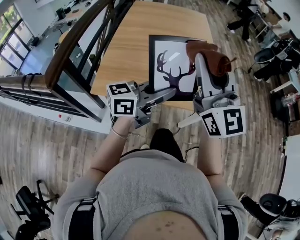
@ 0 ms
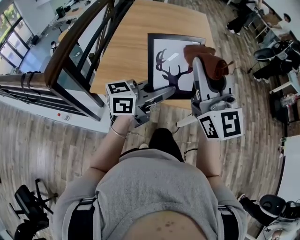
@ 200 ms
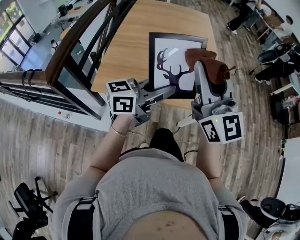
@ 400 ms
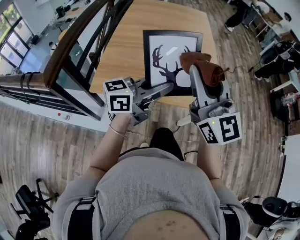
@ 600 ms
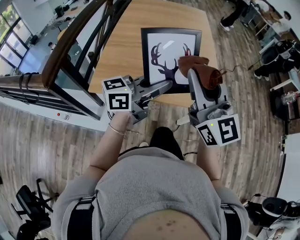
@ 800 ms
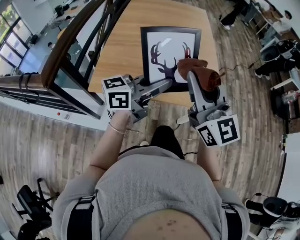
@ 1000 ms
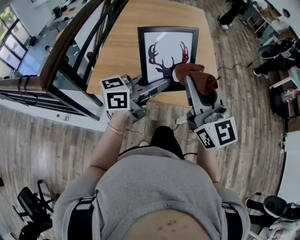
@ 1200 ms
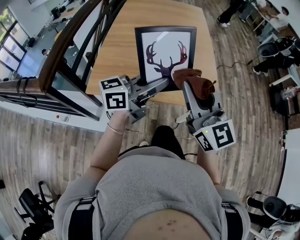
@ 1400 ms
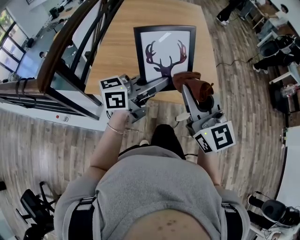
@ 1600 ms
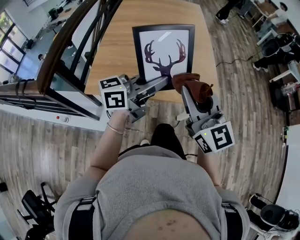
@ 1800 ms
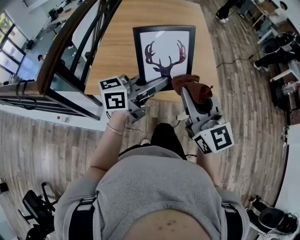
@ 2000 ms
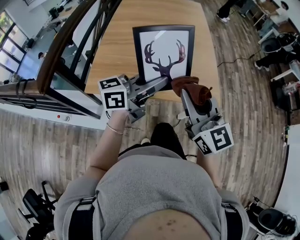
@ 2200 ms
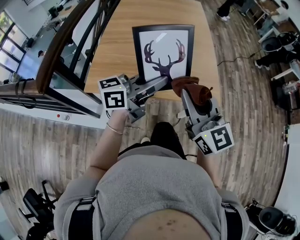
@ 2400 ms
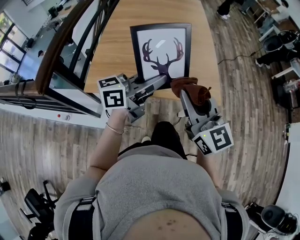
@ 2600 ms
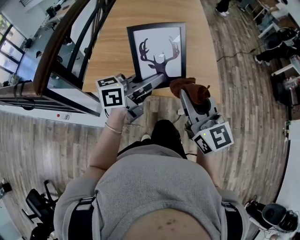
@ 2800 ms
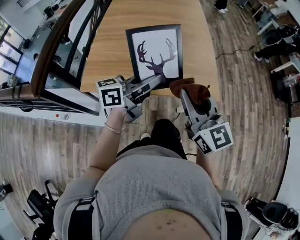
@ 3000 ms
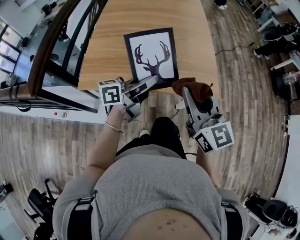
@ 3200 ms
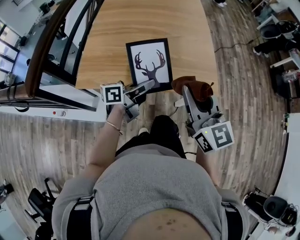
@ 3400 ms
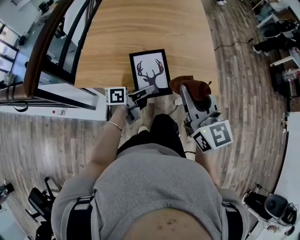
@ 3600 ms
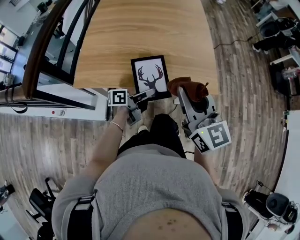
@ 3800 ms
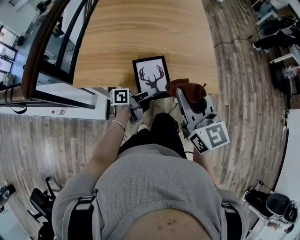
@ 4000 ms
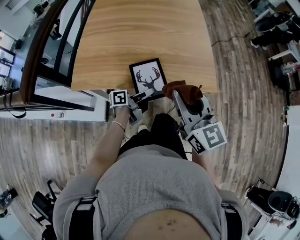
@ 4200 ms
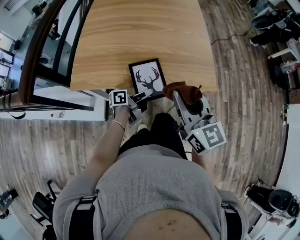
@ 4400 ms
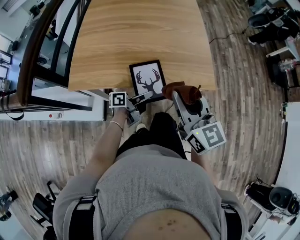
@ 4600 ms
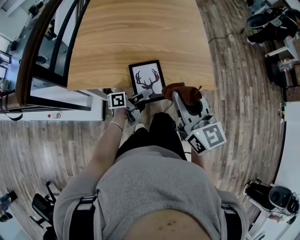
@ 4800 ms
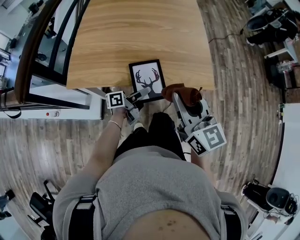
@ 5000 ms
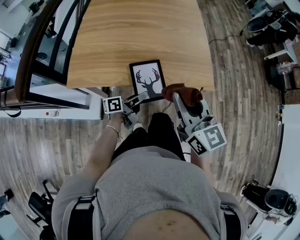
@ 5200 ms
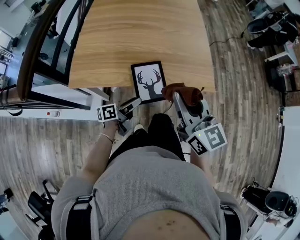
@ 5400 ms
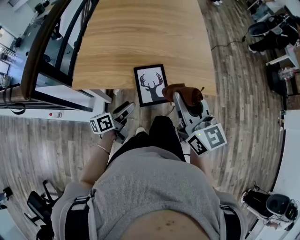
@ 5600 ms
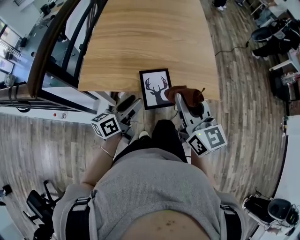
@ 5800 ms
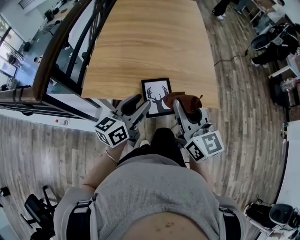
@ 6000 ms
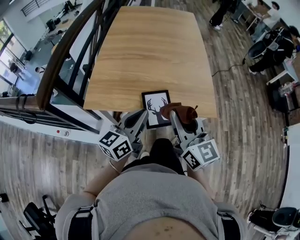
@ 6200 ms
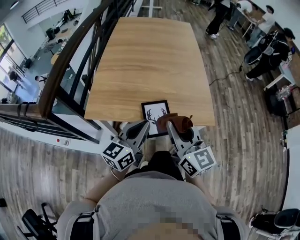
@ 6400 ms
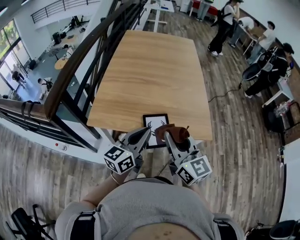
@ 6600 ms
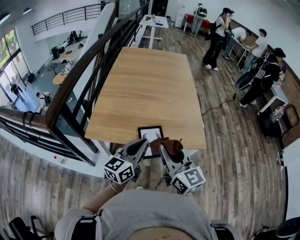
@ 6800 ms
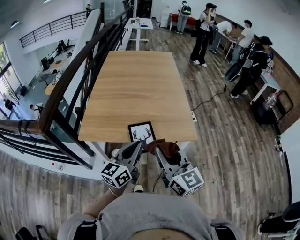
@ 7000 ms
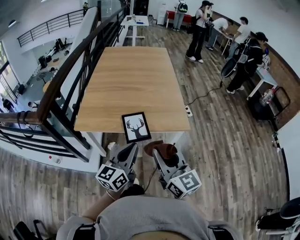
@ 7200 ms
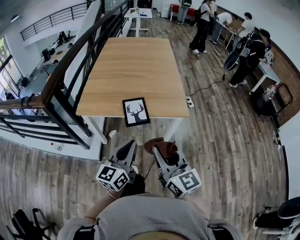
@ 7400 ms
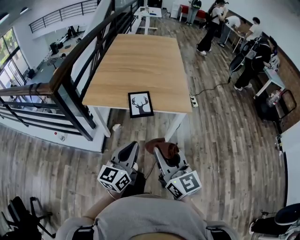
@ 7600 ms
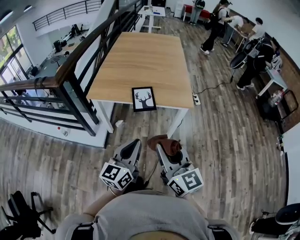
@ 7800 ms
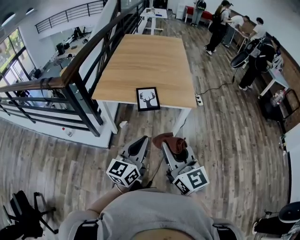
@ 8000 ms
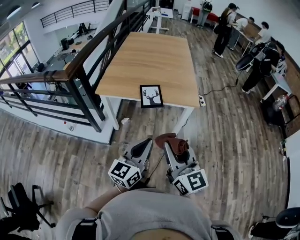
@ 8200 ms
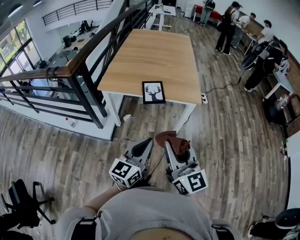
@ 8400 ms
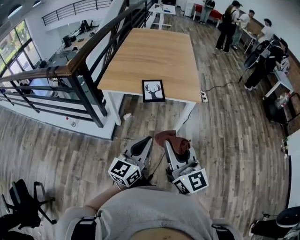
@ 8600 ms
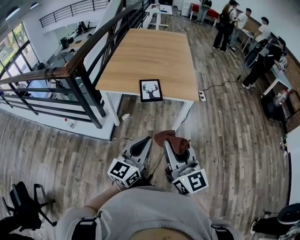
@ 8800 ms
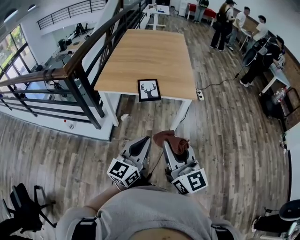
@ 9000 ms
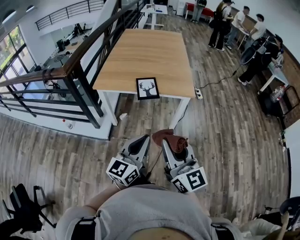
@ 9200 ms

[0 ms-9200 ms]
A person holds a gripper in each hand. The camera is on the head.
0 ms to 1600 ms: The right gripper travels downward by some 10 cm.
1600 ms to 3000 ms: The left gripper moves roughly 5 cm.
3000 ms to 4600 ms: The right gripper moves downward, approximately 5 cm. Meanwhile the left gripper goes about 25 cm downward, and rotates approximately 30 degrees.
4600 ms to 6200 ms: The right gripper changes place by approximately 5 cm. Meanwhile the left gripper travels upward by roughly 20 cm, twists approximately 50 degrees clockwise, seen from behind, and opens, then closes once more.
6200 ms to 7600 ms: The grippers both shift backward by approximately 30 cm.
7600 ms to 9200 ms: Both grippers travel together backward, roughly 10 cm.

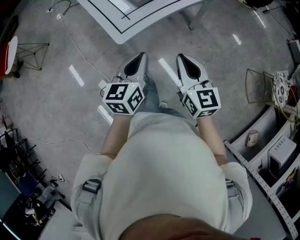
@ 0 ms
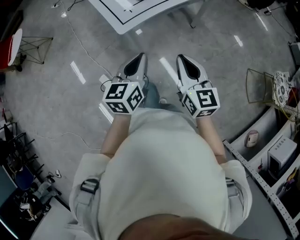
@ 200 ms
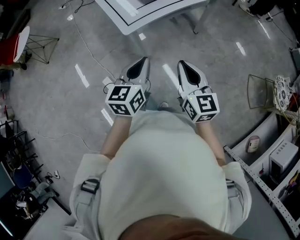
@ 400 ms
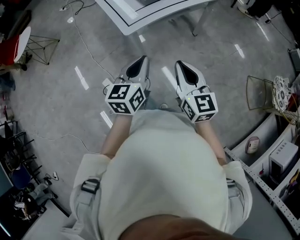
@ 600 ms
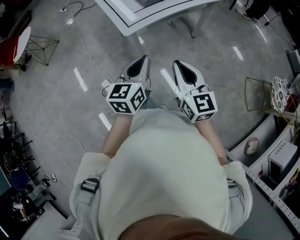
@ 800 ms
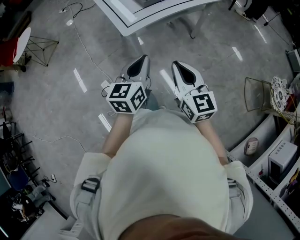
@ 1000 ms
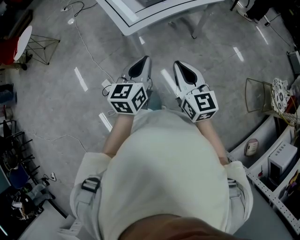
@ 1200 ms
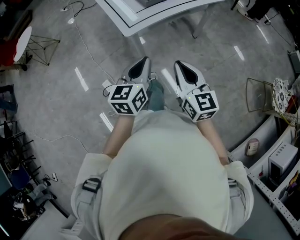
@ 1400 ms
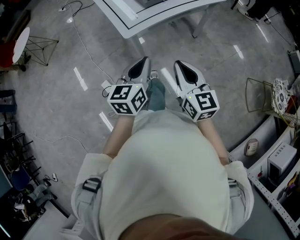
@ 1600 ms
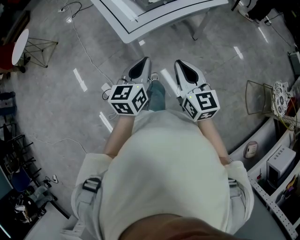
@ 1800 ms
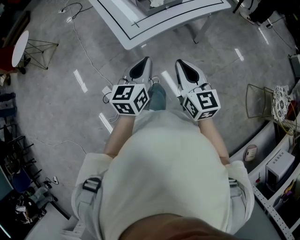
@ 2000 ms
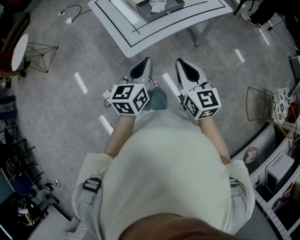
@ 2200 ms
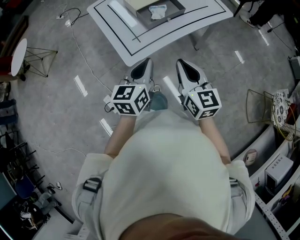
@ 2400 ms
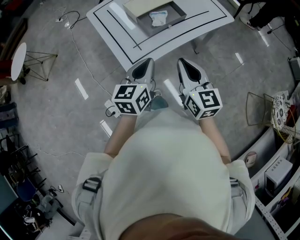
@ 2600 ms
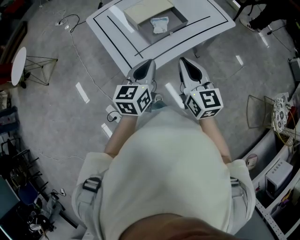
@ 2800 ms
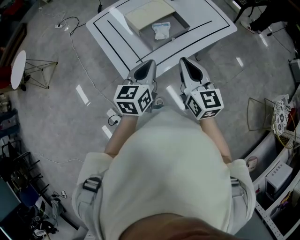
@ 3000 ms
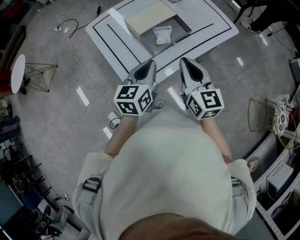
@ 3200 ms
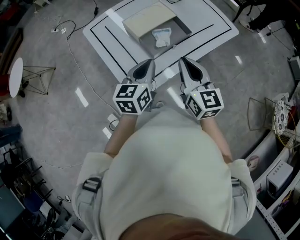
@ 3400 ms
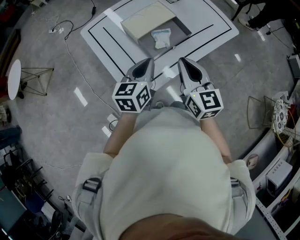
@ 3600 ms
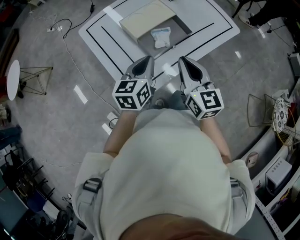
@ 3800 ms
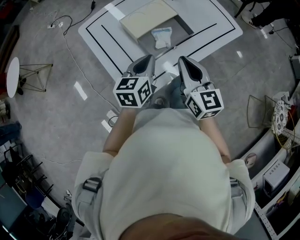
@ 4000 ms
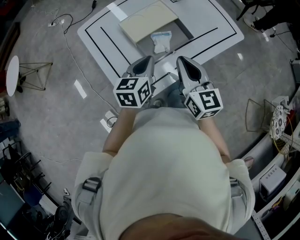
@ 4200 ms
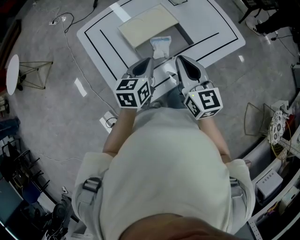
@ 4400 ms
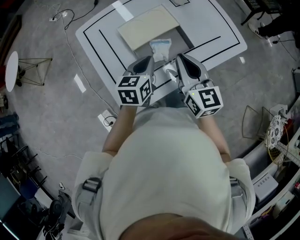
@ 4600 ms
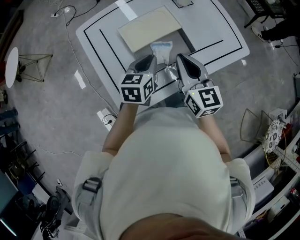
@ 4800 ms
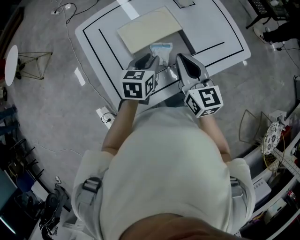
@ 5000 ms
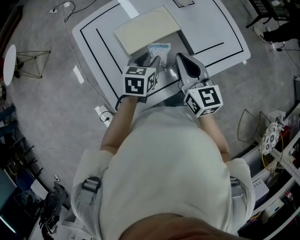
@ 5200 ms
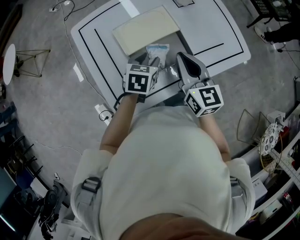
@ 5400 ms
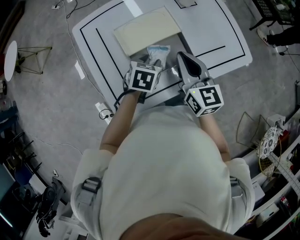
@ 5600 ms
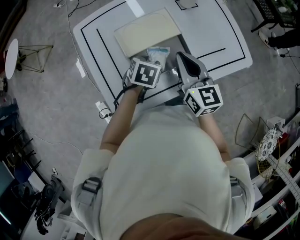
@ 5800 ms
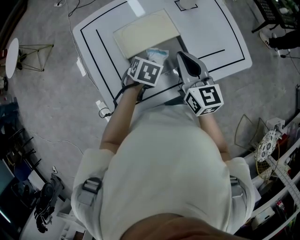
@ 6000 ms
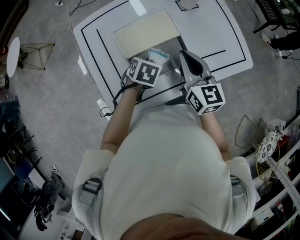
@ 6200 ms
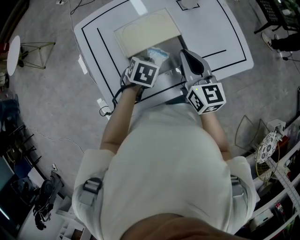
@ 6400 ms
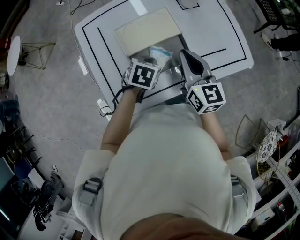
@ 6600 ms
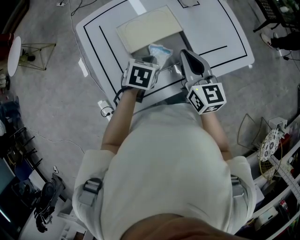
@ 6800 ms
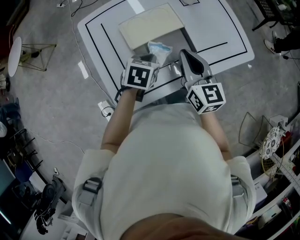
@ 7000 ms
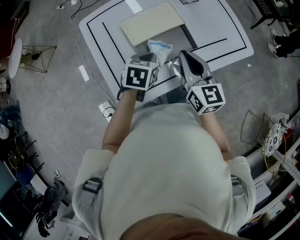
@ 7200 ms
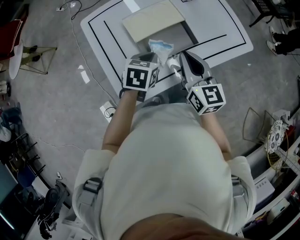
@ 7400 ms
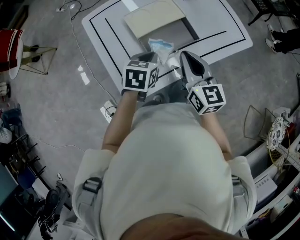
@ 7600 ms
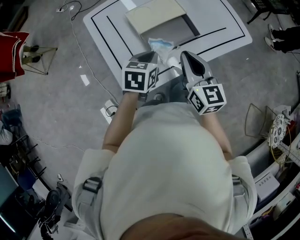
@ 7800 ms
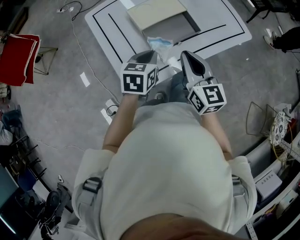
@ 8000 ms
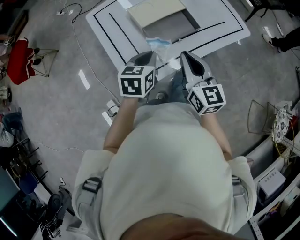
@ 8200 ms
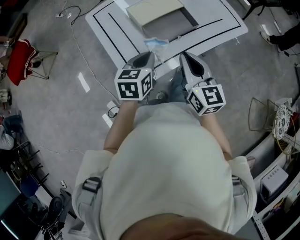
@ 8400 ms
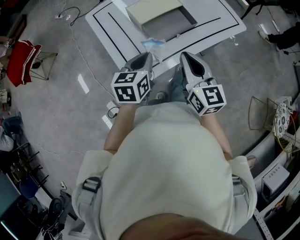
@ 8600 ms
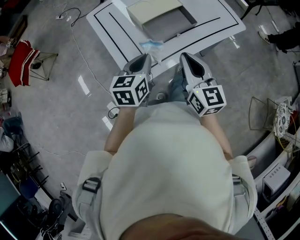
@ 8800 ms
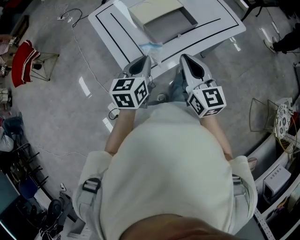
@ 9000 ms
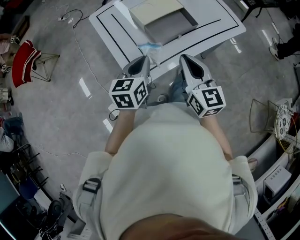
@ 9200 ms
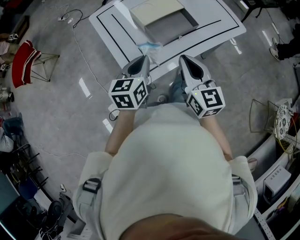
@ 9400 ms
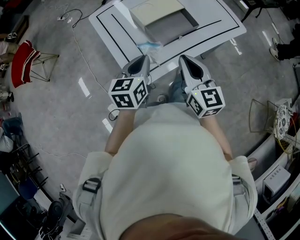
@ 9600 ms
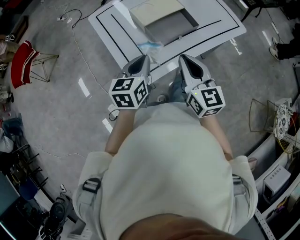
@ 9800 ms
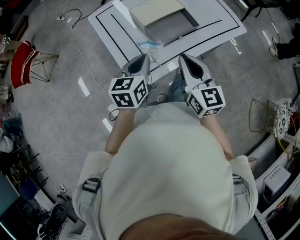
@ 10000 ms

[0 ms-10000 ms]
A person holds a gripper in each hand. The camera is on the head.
0 ms to 1400 ms: The two grippers go about 10 cm backward.
1400 ms to 2800 ms: Both grippers travel together forward, roughly 30 cm.
2800 ms to 4200 ms: Both grippers travel together forward, about 15 cm.
4200 ms to 5800 ms: The right gripper heads forward, covering some 15 cm. The left gripper goes some 15 cm downward and forward, tilts its fingers approximately 40 degrees downward, and opens its fingers.
5800 ms to 7200 ms: The right gripper shifts some 5 cm backward. The left gripper moves upward, approximately 5 cm, and closes up.
7200 ms to 8600 ms: The left gripper goes about 15 cm backward and upward, and turns by approximately 20 degrees. Meanwhile the right gripper travels backward by about 15 cm.
8600 ms to 10000 ms: There are only small adjustments of the grippers.

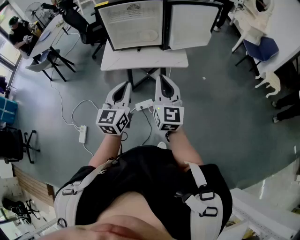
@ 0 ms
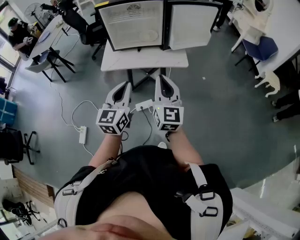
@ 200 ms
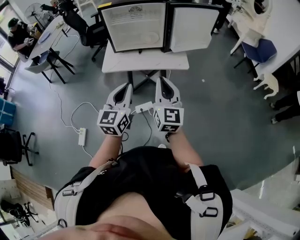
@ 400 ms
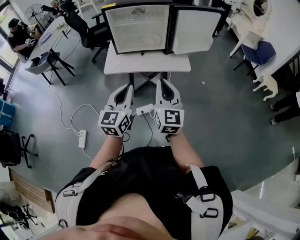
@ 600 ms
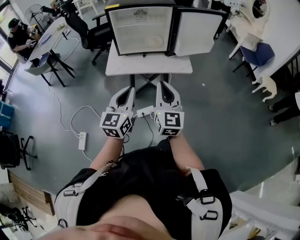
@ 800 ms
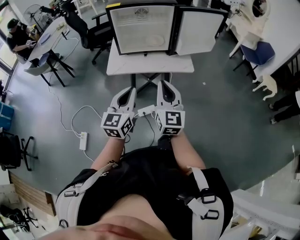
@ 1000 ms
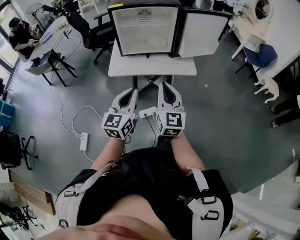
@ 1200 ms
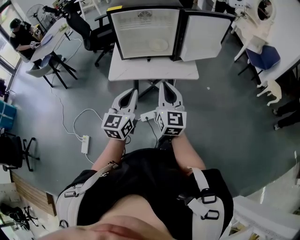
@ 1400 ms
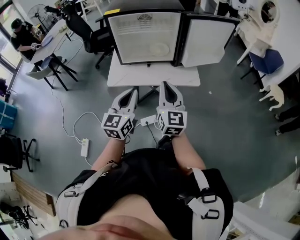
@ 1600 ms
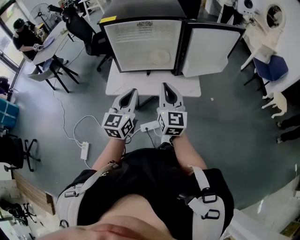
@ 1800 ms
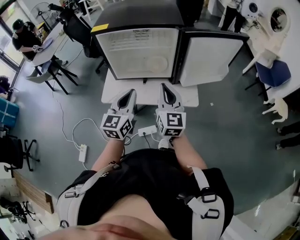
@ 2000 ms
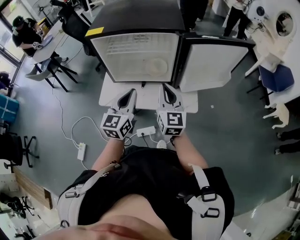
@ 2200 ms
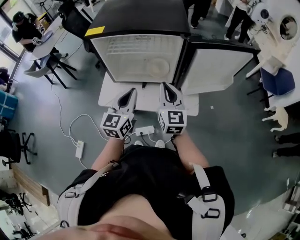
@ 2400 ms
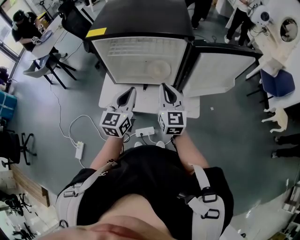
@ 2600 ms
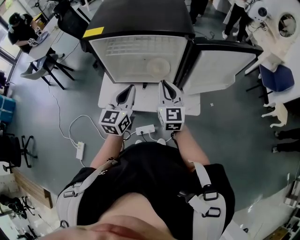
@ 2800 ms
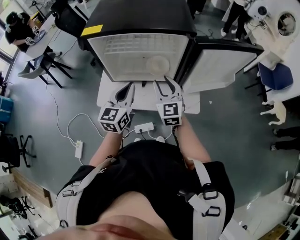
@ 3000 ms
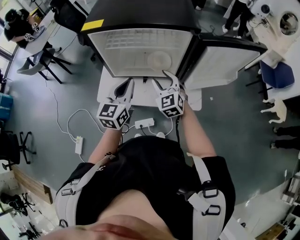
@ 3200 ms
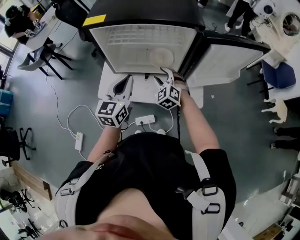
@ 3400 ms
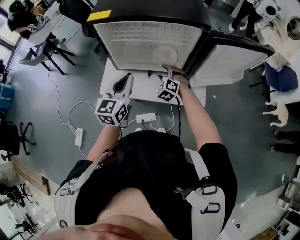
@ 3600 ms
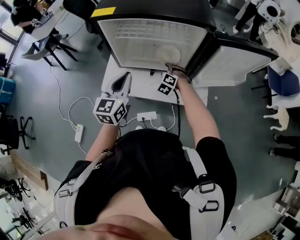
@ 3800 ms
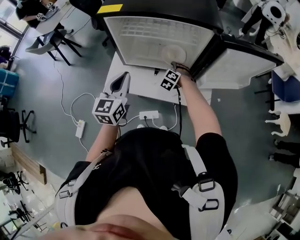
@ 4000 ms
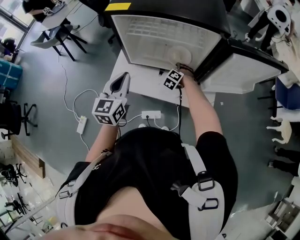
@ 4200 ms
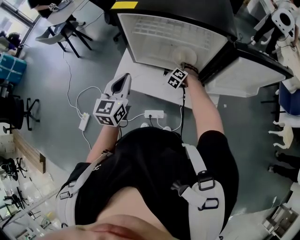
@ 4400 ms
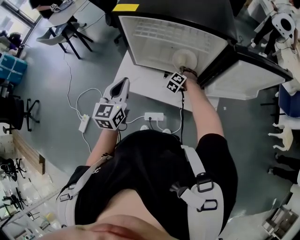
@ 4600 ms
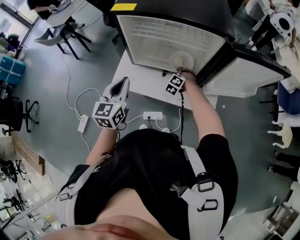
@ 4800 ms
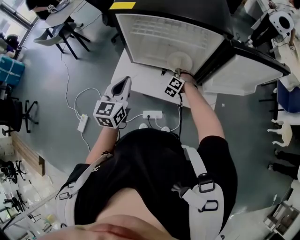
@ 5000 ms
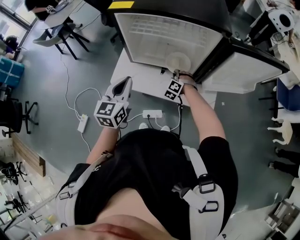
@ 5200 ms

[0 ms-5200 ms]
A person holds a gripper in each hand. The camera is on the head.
0 ms to 1800 ms: The two grippers go approximately 20 cm forward.
1800 ms to 3400 ms: The right gripper is displaced forward and downward by roughly 30 cm, tips its fingers downward by roughly 40 degrees, and opens its fingers; the left gripper is displaced forward by about 20 cm.
3400 ms to 5200 ms: The left gripper heads to the left and backward, covering approximately 10 cm; the right gripper heads downward, covering roughly 15 cm, changes its angle by about 30 degrees, and closes up.
